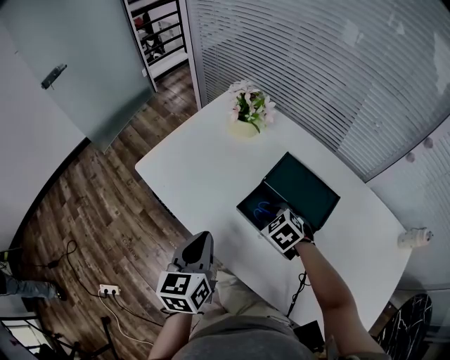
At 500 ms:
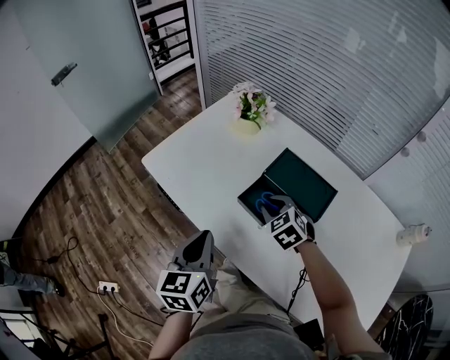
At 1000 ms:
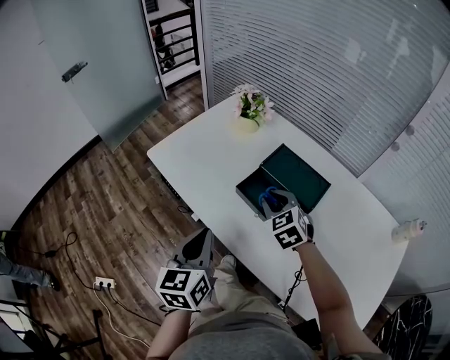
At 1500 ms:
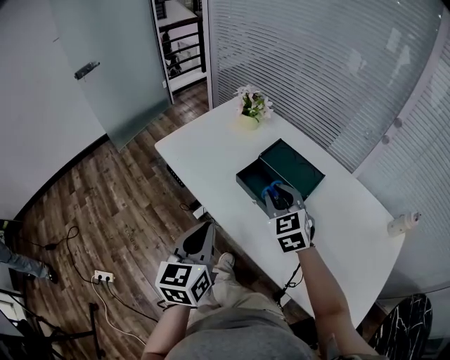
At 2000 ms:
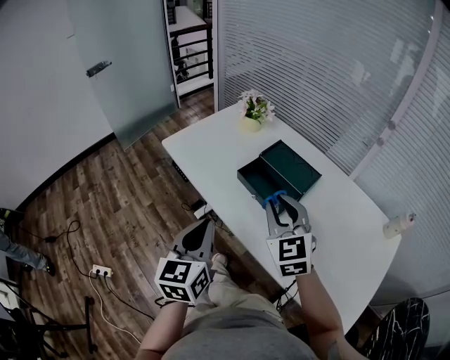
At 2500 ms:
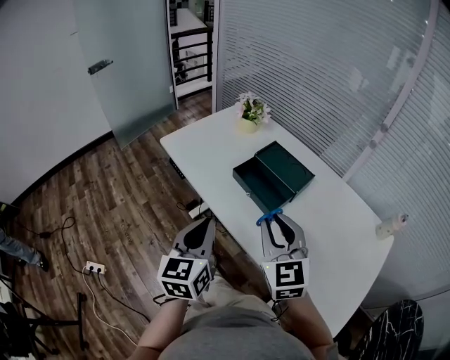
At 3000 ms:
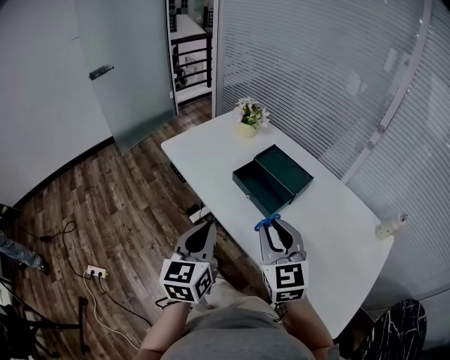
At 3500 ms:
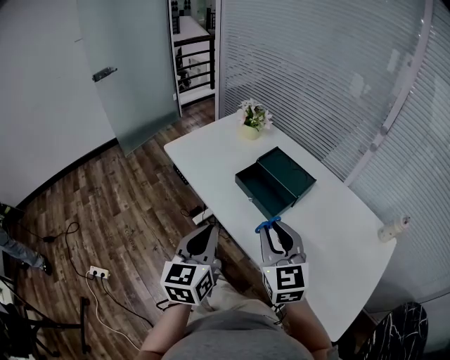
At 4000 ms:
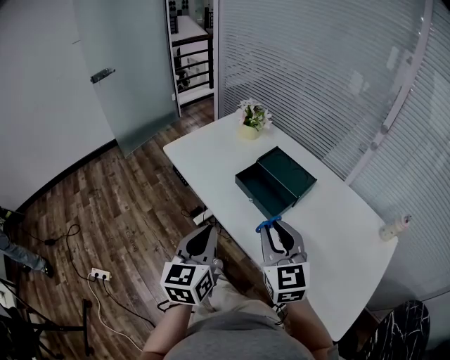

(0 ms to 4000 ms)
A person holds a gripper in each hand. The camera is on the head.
0 ms - 2000 ms: The left gripper goes some 20 cm backward. Meanwhile the right gripper shifts about 35 cm upward and backward, and points its fingers roughly 40 degrees further upward.
2000 ms - 4000 ms: The right gripper moves backward, roughly 10 cm.

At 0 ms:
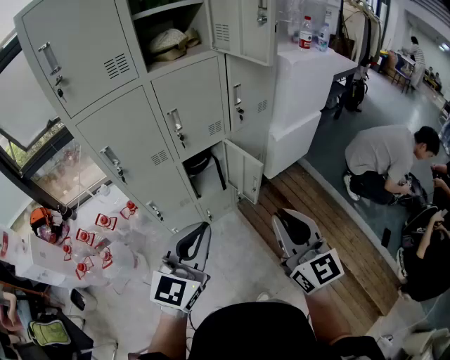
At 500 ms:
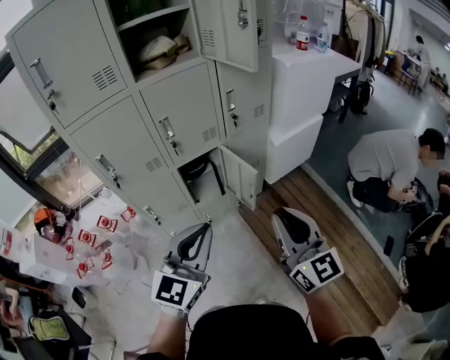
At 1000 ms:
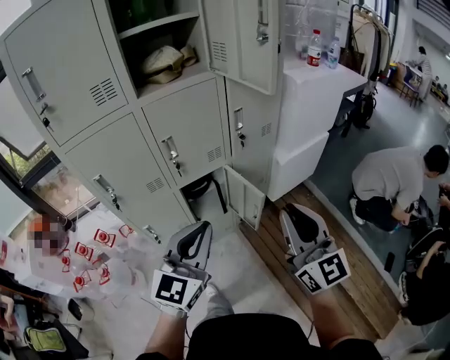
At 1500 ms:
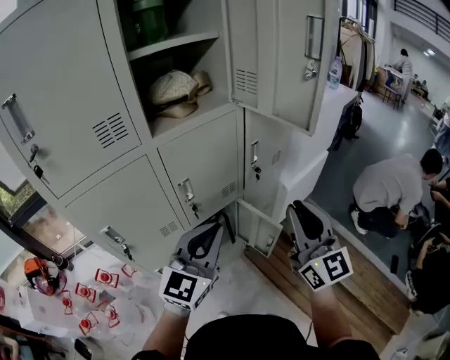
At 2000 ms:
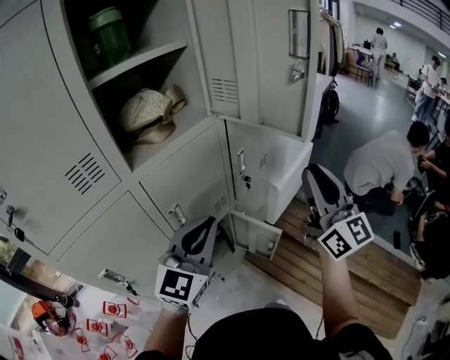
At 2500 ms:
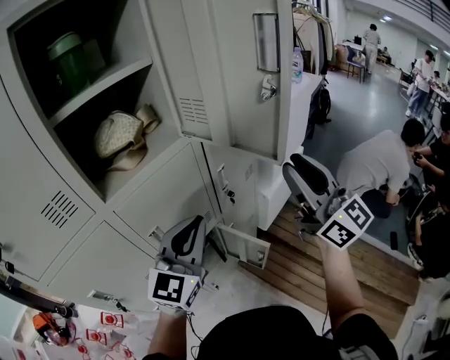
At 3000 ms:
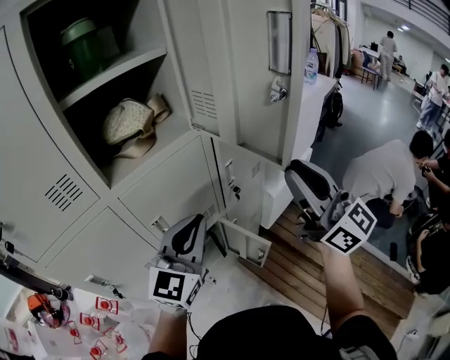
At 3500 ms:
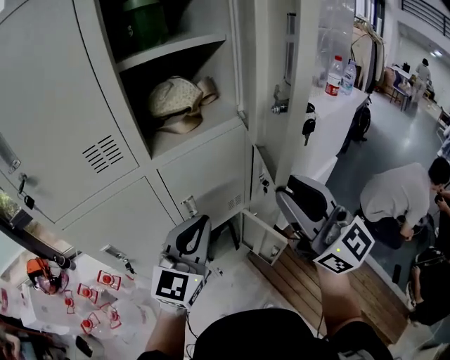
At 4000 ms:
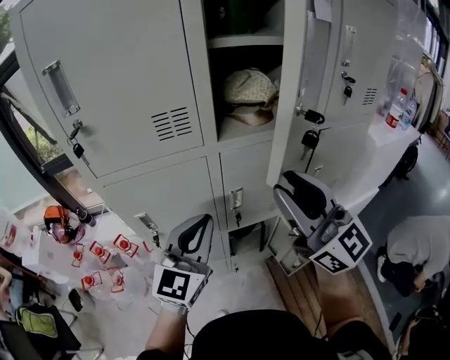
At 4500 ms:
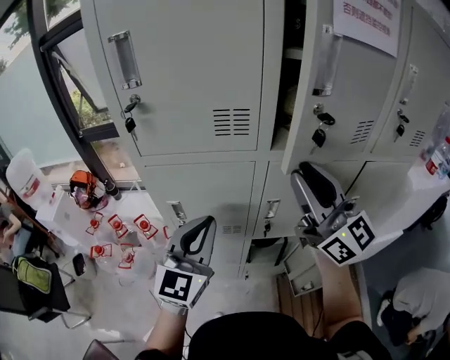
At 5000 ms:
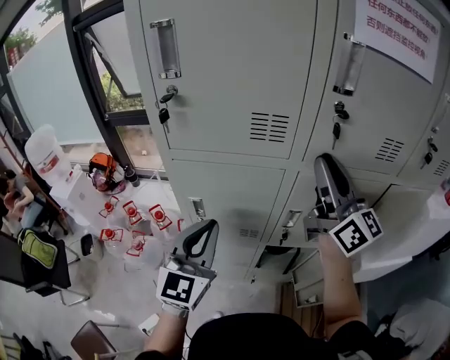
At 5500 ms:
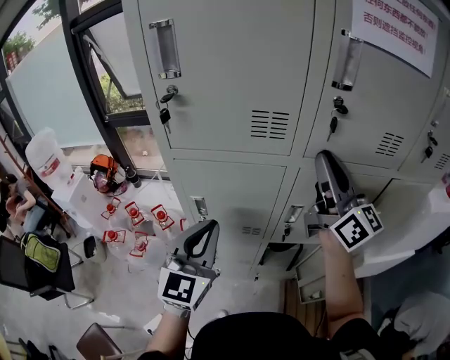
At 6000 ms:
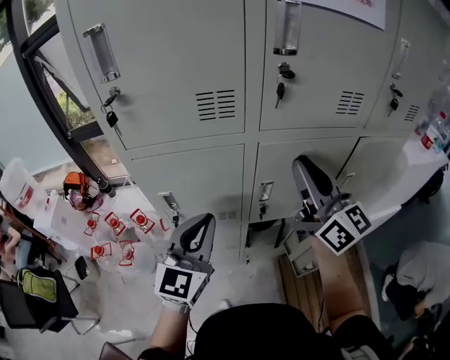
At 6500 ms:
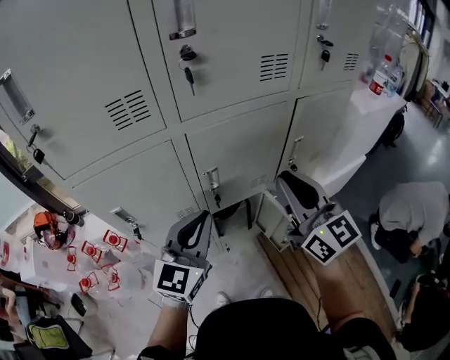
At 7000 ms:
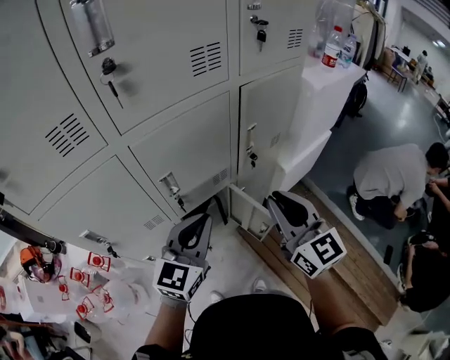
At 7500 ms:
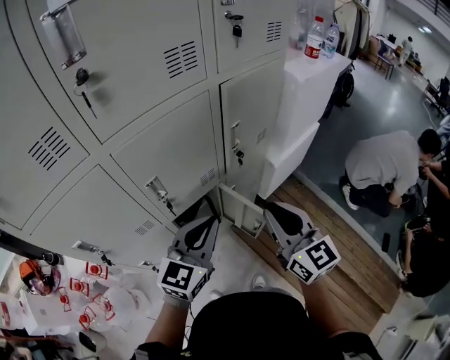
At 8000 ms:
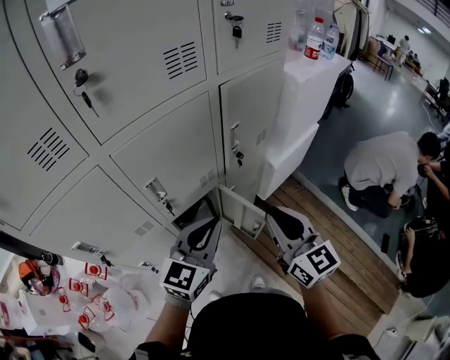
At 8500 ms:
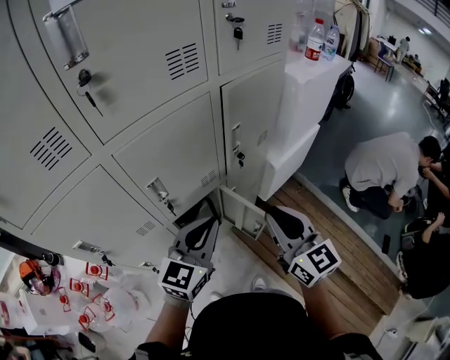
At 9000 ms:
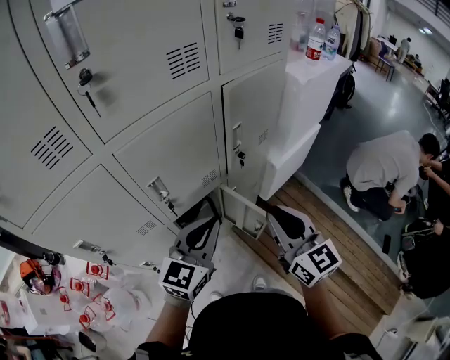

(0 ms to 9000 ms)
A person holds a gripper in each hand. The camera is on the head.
0 ms - 2000 ms: The right gripper travels forward and upward by approximately 35 cm, and rotates approximately 30 degrees; the left gripper moves forward, some 30 cm.
2000 ms - 4500 ms: The right gripper ends up approximately 30 cm from where it was, and turns by approximately 60 degrees; the left gripper shifts by roughly 20 cm, and turns by about 50 degrees.
4500 ms - 7000 ms: The left gripper ends up roughly 25 cm from where it was, and turns by roughly 40 degrees. The right gripper ends up some 30 cm from where it was, and changes its angle by some 40 degrees.
7000 ms - 9000 ms: The right gripper changes place by some 5 cm.

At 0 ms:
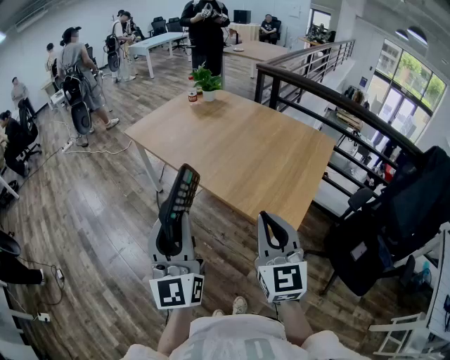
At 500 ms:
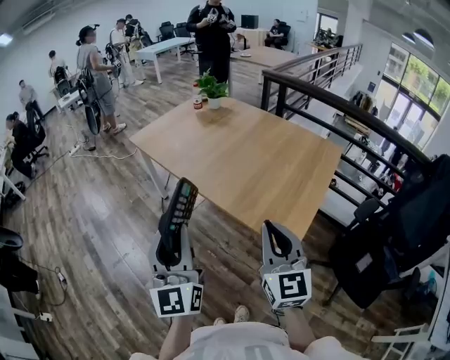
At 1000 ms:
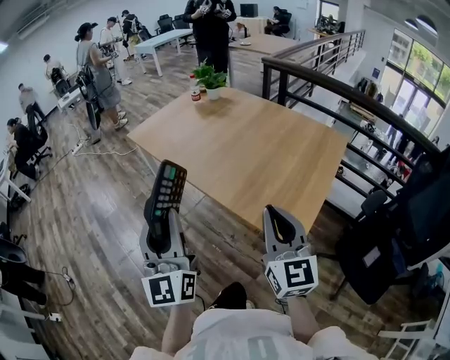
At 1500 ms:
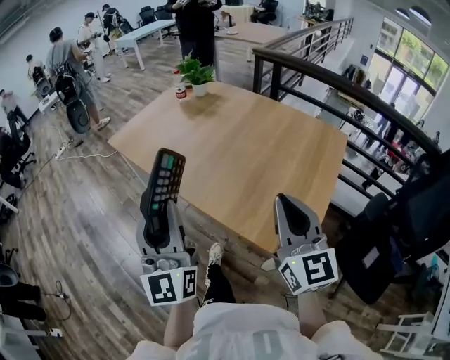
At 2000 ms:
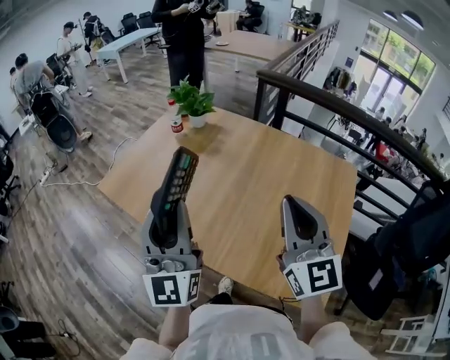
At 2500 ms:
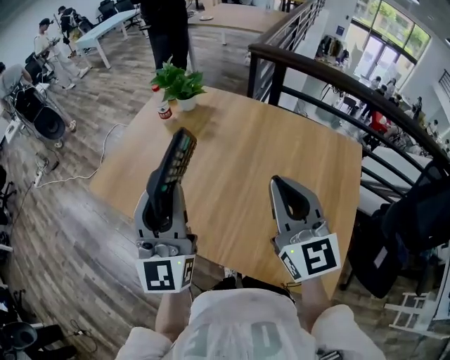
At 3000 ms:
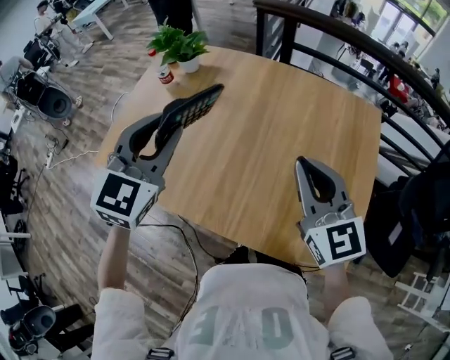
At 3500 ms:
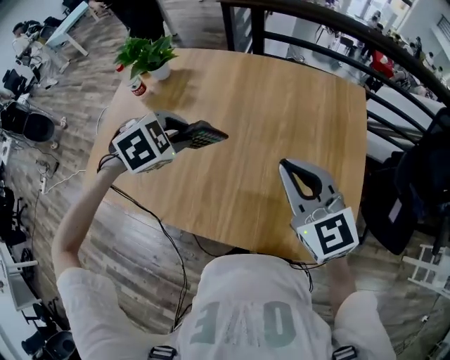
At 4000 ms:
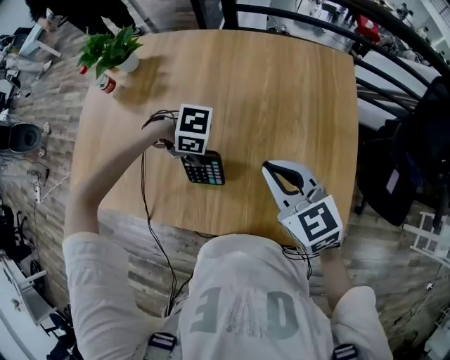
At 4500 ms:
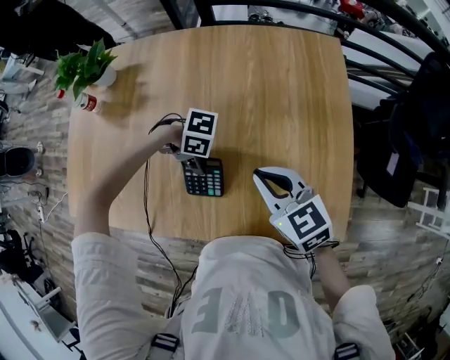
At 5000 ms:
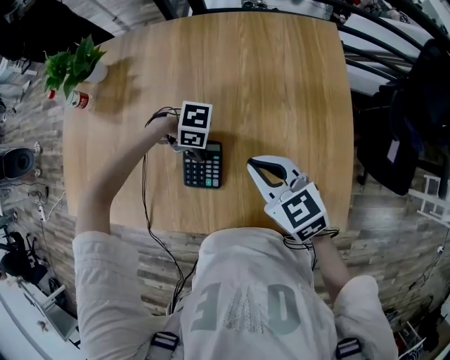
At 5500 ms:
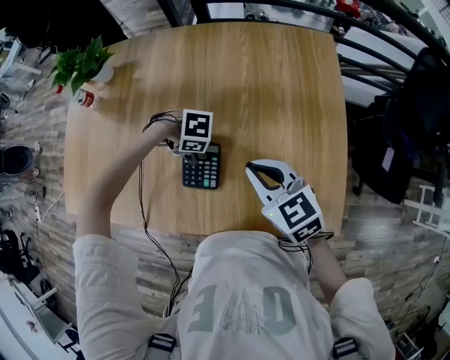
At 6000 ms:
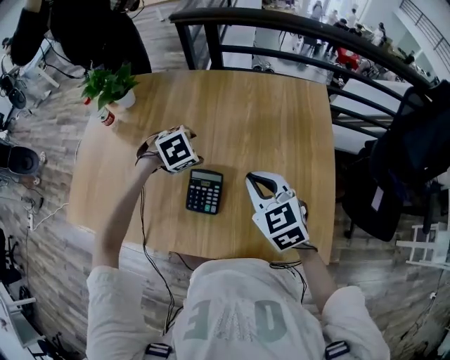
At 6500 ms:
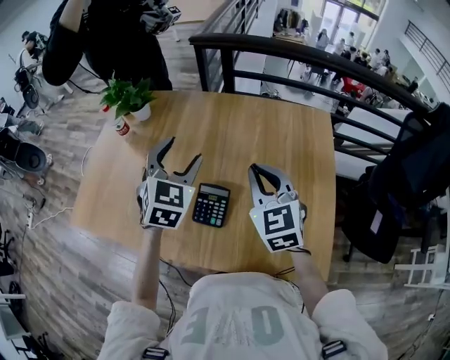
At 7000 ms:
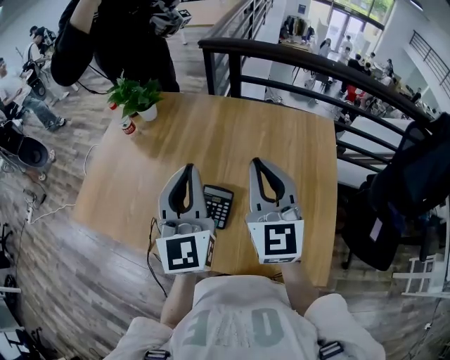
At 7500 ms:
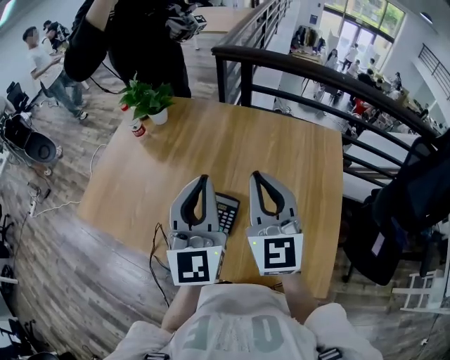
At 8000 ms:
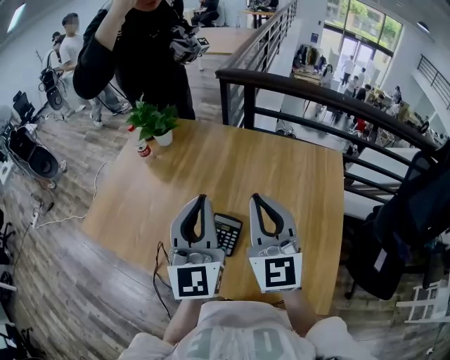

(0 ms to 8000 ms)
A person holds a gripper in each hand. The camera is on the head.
0 ms - 2000 ms: The two grippers go approximately 40 cm forward.
2000 ms - 4000 ms: The right gripper travels downward by approximately 20 cm, and points its fingers approximately 30 degrees further downward; the left gripper heads downward, covering approximately 35 cm, and tilts its fingers approximately 90 degrees downward.
4000 ms - 6000 ms: The left gripper moves approximately 15 cm, swivels some 50 degrees, and opens.
6000 ms - 8000 ms: The right gripper heads upward, covering roughly 15 cm, and points its fingers roughly 40 degrees further upward; the left gripper moves upward and backward, approximately 30 cm, tips its fingers upward by roughly 90 degrees, and closes its fingers.

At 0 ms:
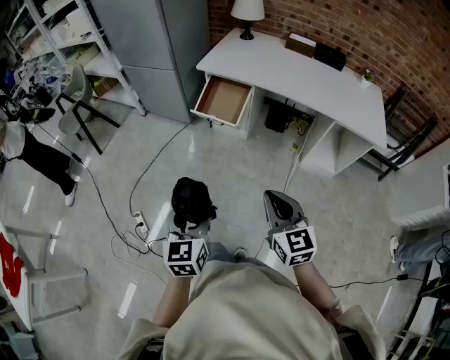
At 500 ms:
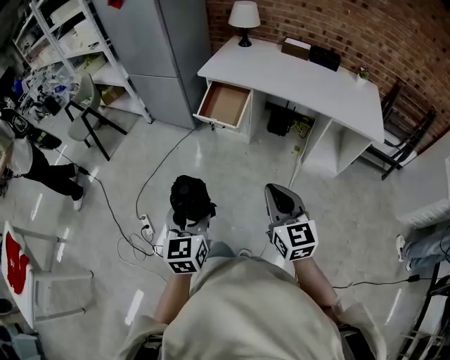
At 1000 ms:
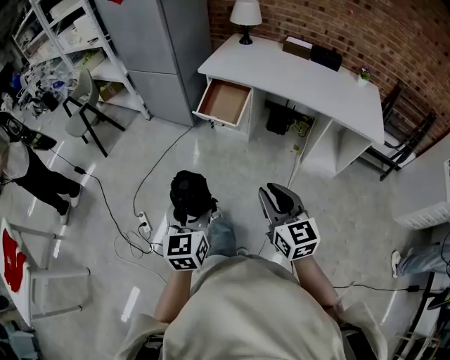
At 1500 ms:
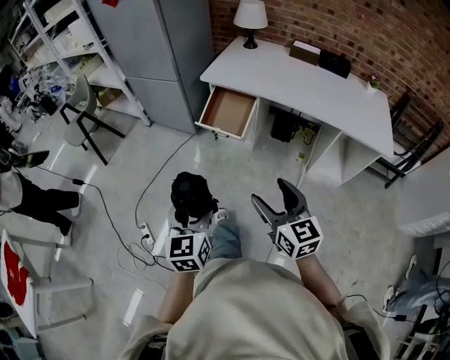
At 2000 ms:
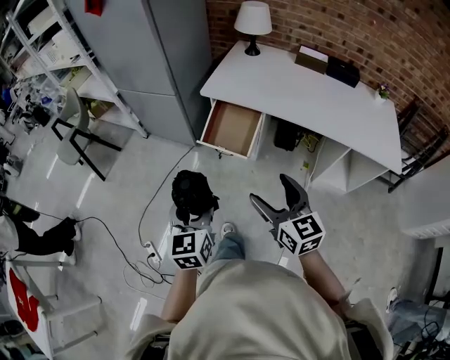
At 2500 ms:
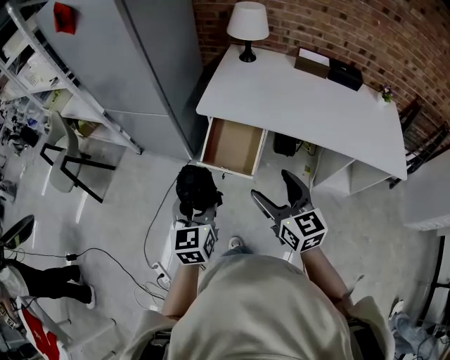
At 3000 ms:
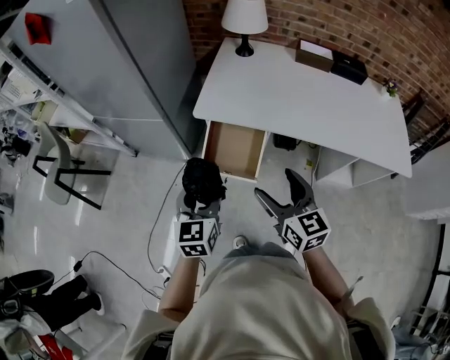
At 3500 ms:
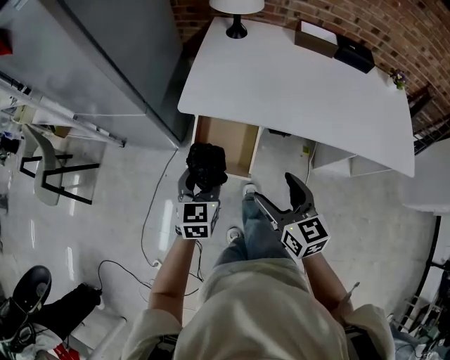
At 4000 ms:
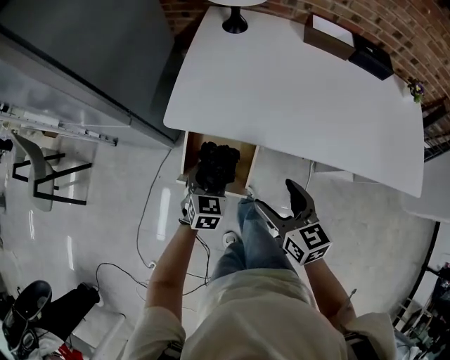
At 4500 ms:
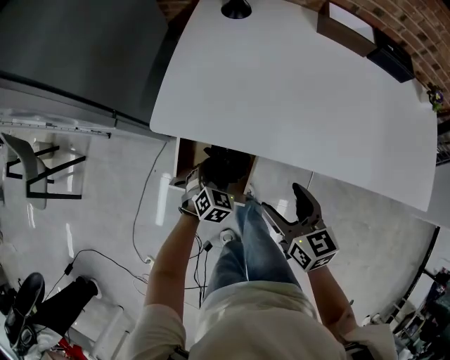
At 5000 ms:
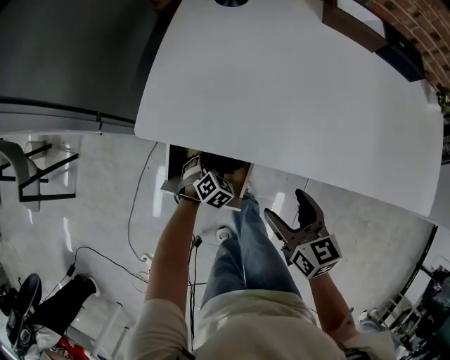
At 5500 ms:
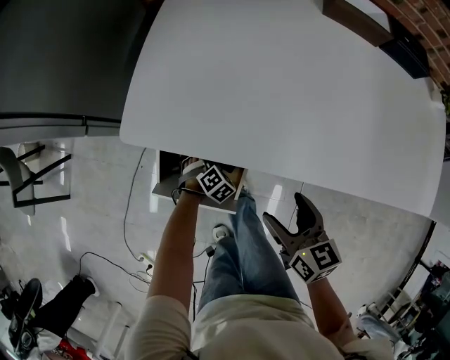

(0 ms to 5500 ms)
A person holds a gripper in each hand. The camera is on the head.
0 ms - 2000 ms: Both grippers move forward, roughly 20 cm. The right gripper opens.
2000 ms - 3500 ms: The two grippers go about 30 cm forward. The left gripper changes its angle by some 20 degrees.
3500 ms - 5500 ms: The right gripper is displaced downward, forward and to the right by about 25 cm, while the left gripper moves downward, about 40 cm, and angles its fingers downward, by about 50 degrees.
